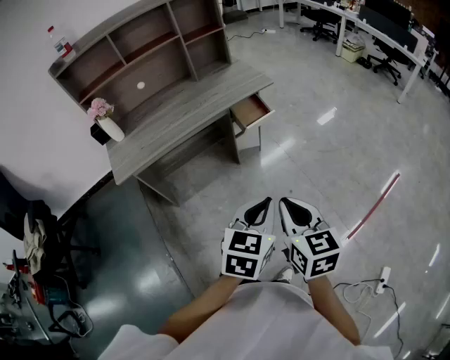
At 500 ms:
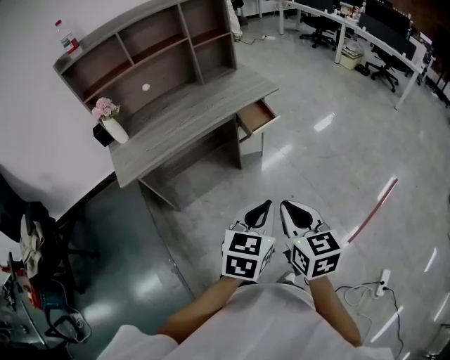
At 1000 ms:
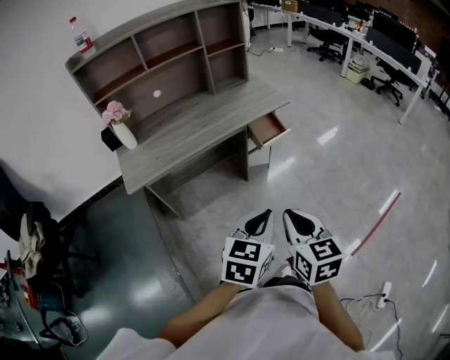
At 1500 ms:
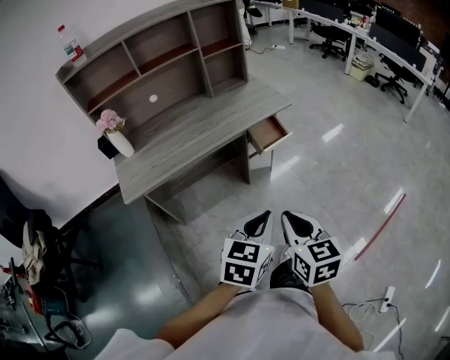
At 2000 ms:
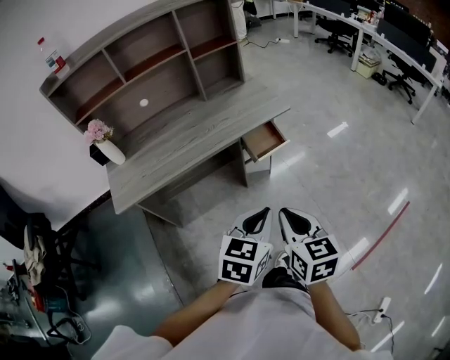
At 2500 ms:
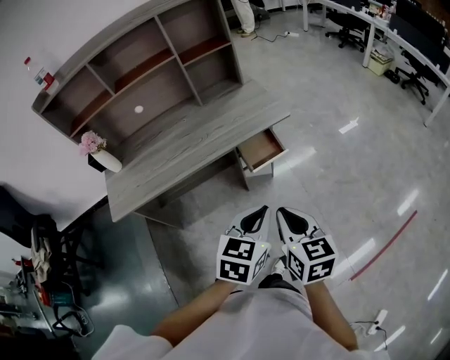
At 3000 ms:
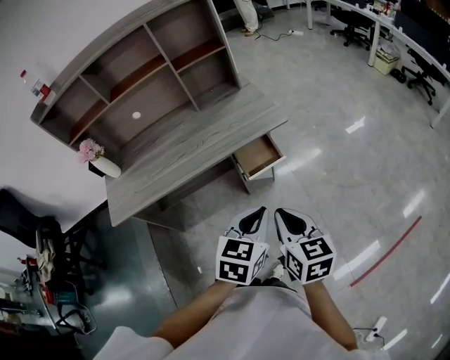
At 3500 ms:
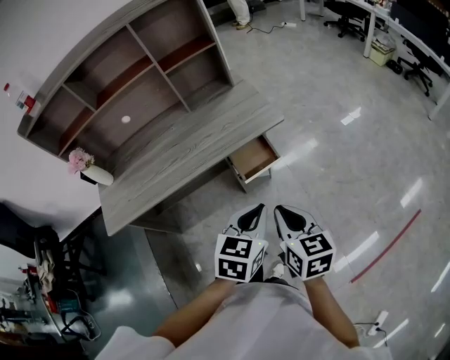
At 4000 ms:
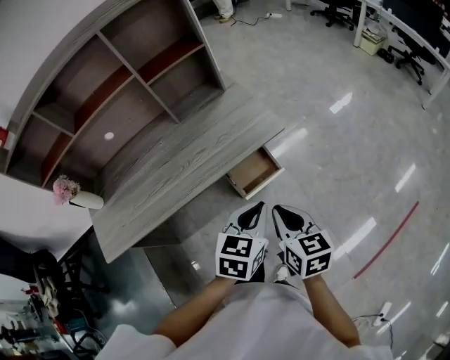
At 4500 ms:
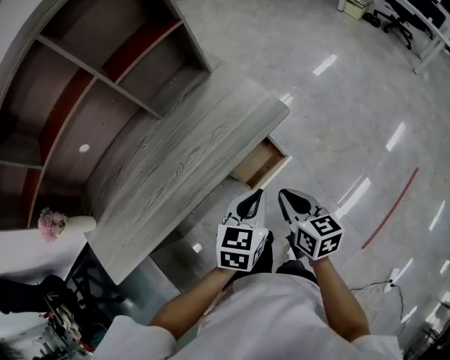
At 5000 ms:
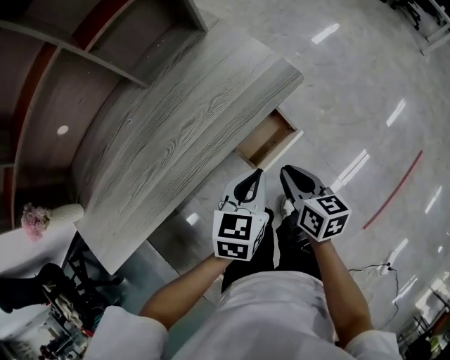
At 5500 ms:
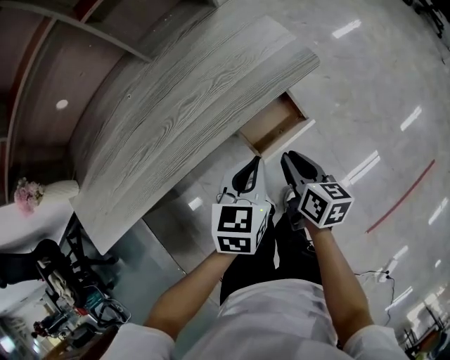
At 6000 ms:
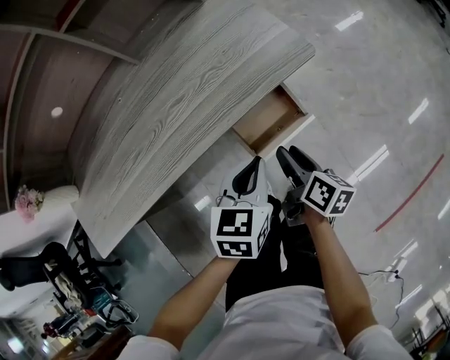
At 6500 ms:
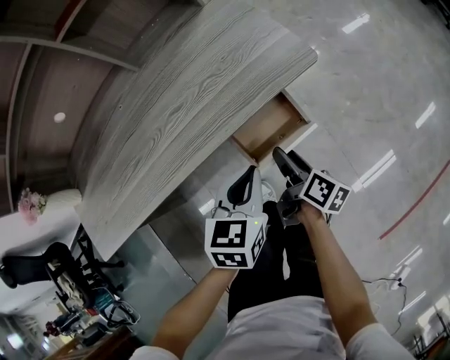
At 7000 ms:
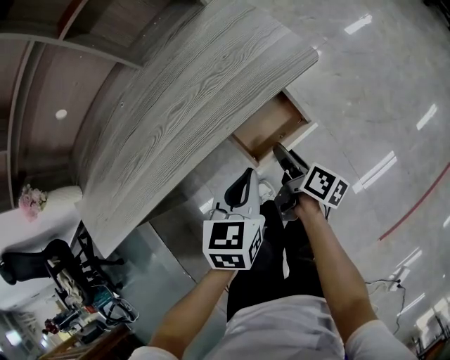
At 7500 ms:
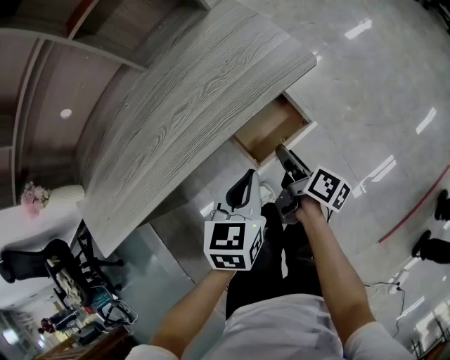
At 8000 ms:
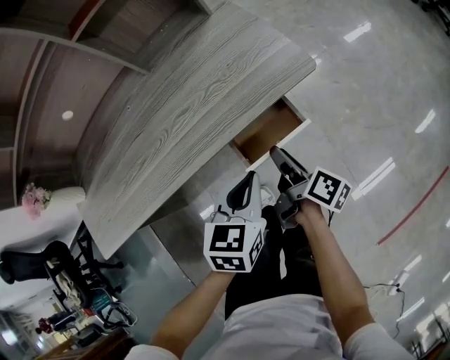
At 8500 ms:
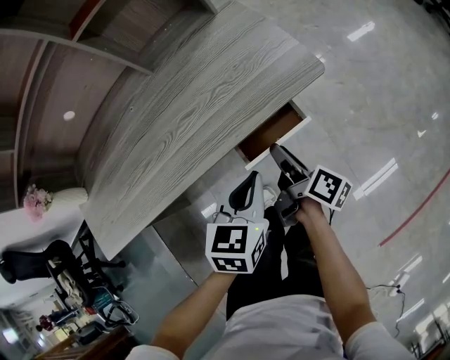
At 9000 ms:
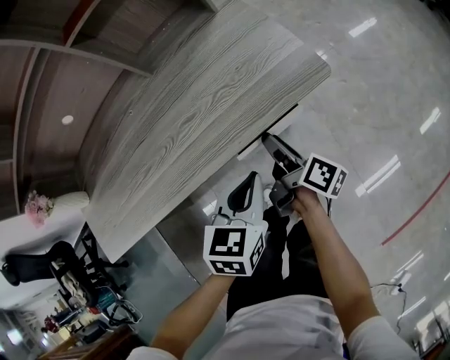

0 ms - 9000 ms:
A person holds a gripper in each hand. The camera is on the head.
0 ms - 2000 ms: Both grippers travel together forward, some 15 cm.
2000 ms - 4500 ms: The two grippers go roughly 35 cm forward.
4500 ms - 7000 ms: The left gripper goes approximately 10 cm downward. Meanwhile the right gripper heads downward, covering approximately 20 cm, rotates around the line of its fingers by approximately 50 degrees, clockwise from behind, and opens.
7000 ms - 9000 ms: The right gripper goes roughly 10 cm forward and upward.

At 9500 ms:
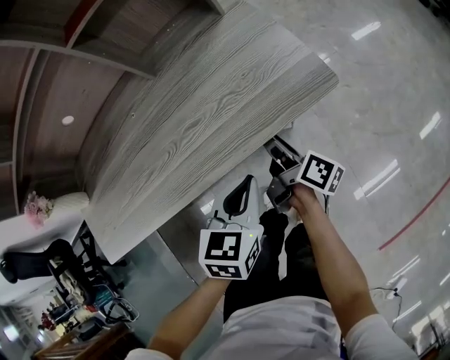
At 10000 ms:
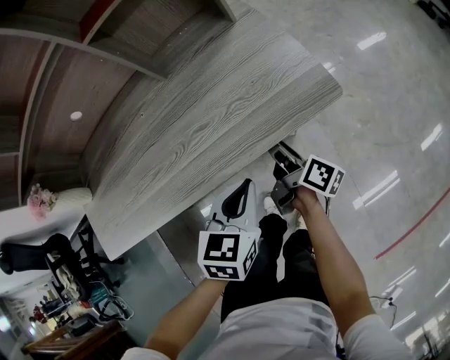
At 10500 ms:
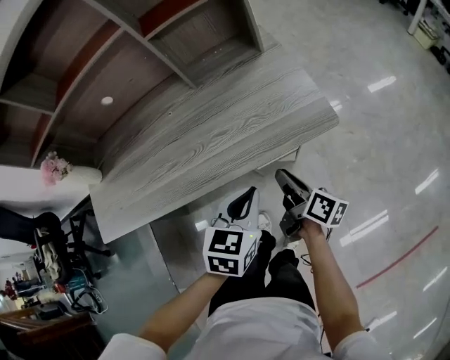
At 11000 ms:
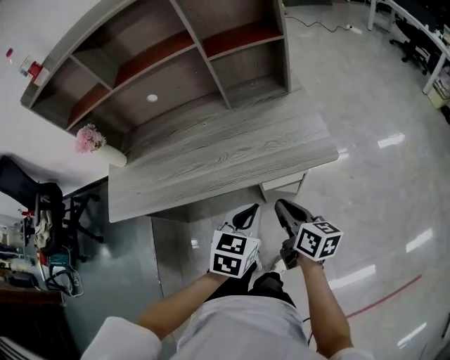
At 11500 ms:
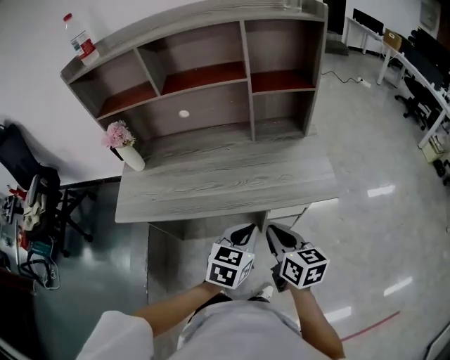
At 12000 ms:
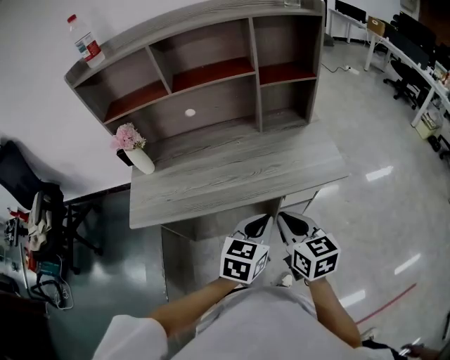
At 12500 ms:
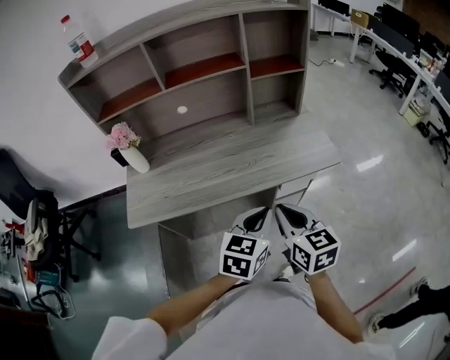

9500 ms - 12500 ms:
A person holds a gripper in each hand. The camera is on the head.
9500 ms - 11000 ms: The left gripper goes roughly 15 cm upward and backward. Meanwhile the right gripper goes some 20 cm upward and backward, swivels about 40 degrees, and closes up.
11000 ms - 12500 ms: Both grippers move to the left, upward and backward, approximately 20 cm. The right gripper swivels approximately 30 degrees.

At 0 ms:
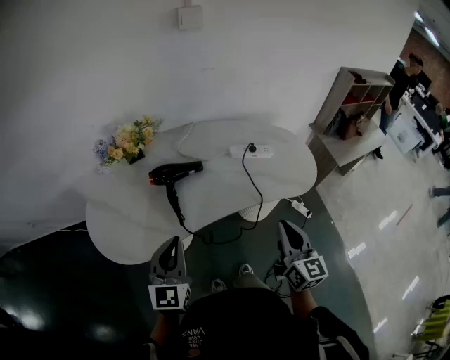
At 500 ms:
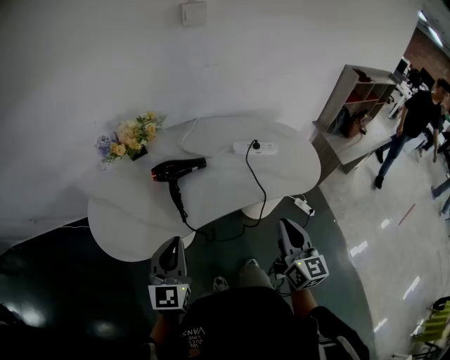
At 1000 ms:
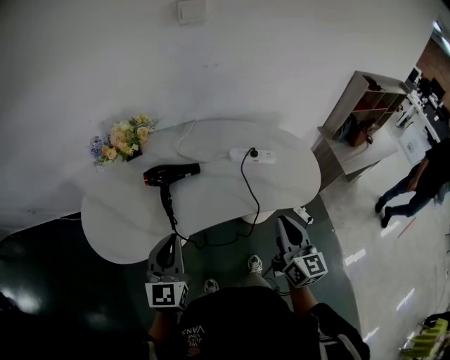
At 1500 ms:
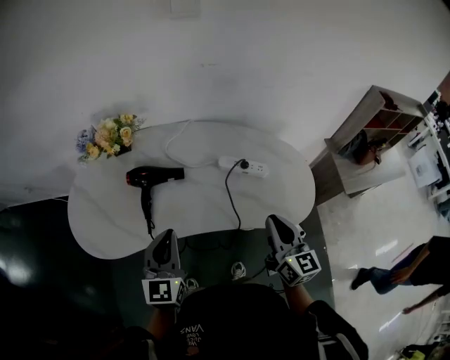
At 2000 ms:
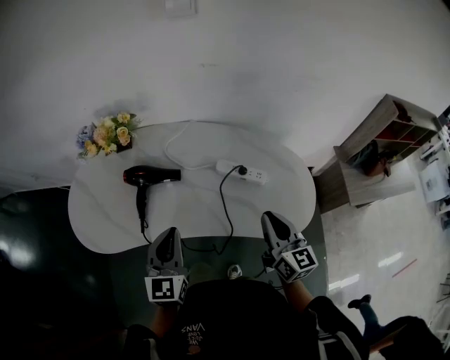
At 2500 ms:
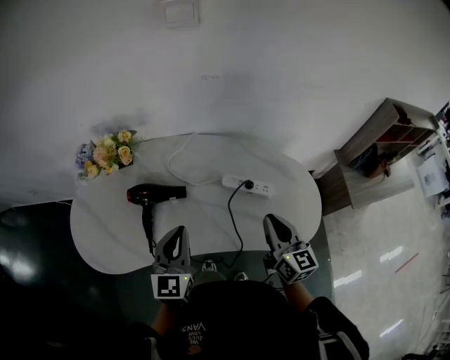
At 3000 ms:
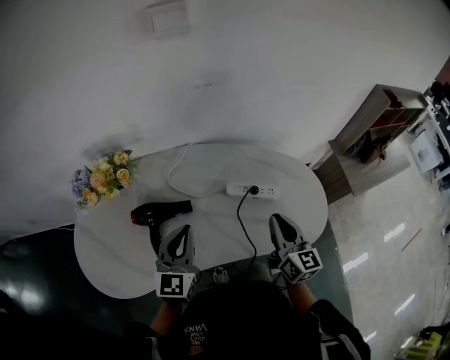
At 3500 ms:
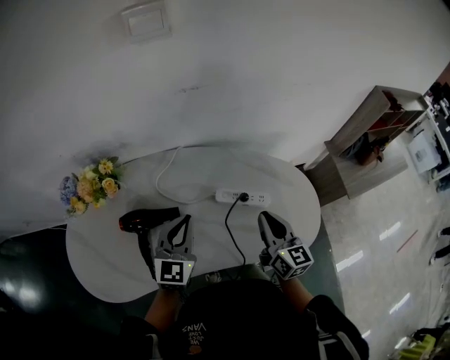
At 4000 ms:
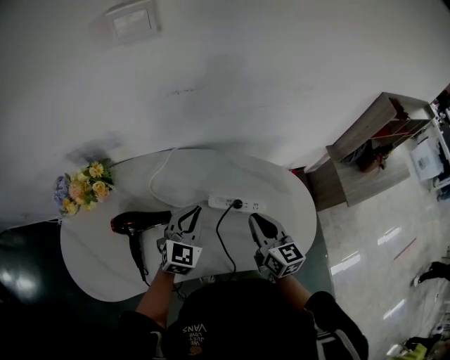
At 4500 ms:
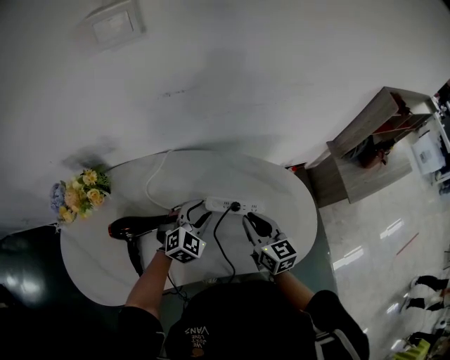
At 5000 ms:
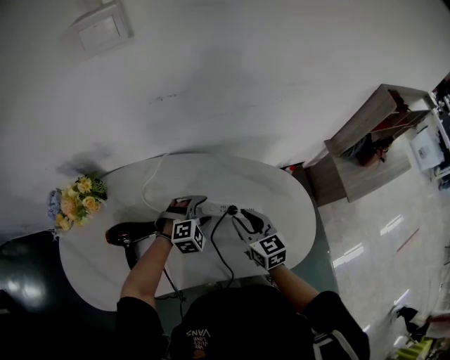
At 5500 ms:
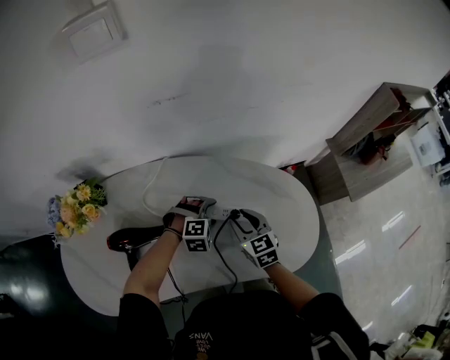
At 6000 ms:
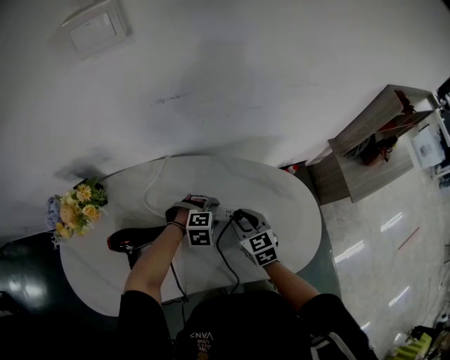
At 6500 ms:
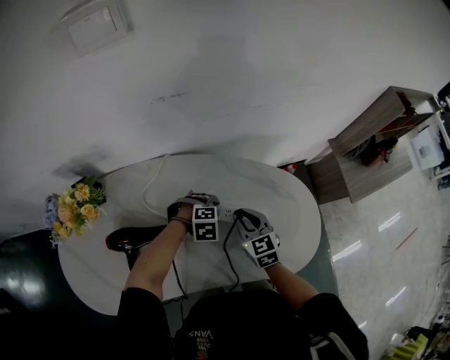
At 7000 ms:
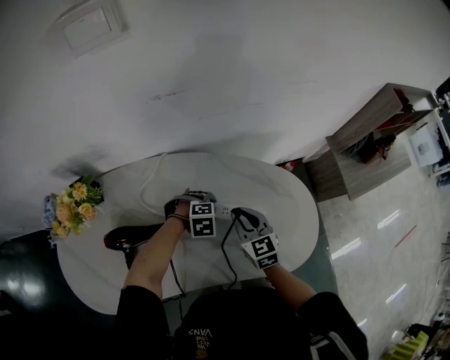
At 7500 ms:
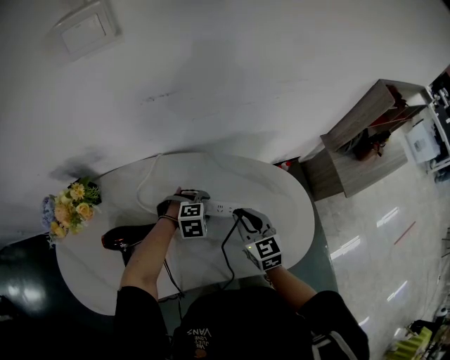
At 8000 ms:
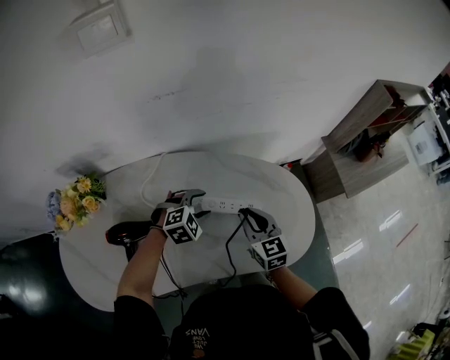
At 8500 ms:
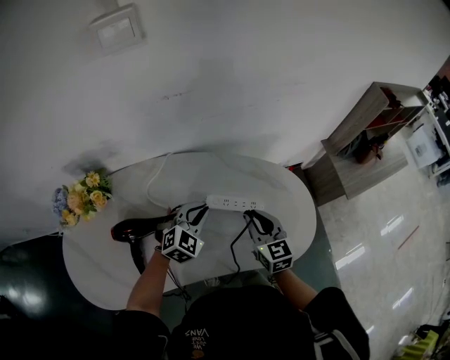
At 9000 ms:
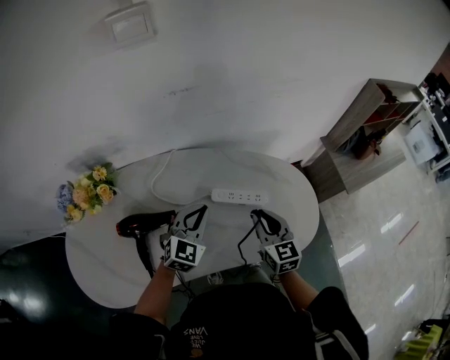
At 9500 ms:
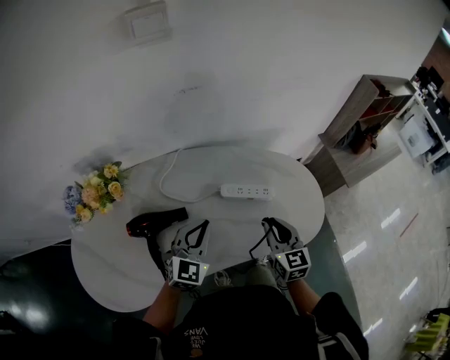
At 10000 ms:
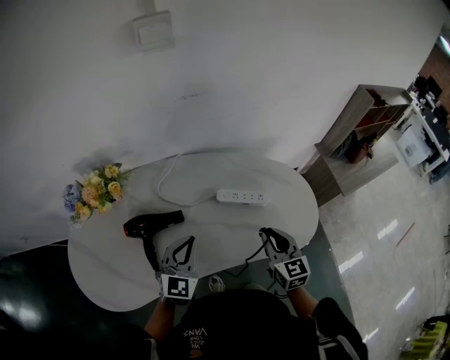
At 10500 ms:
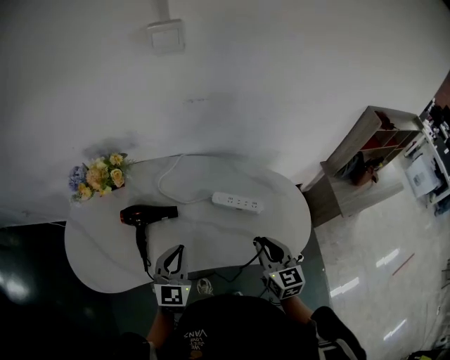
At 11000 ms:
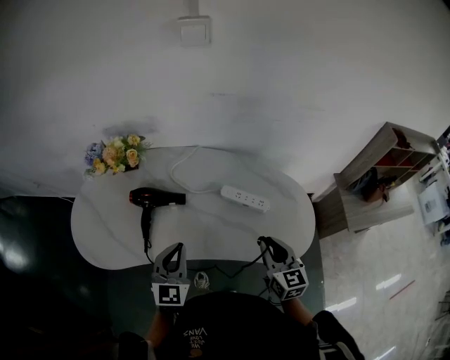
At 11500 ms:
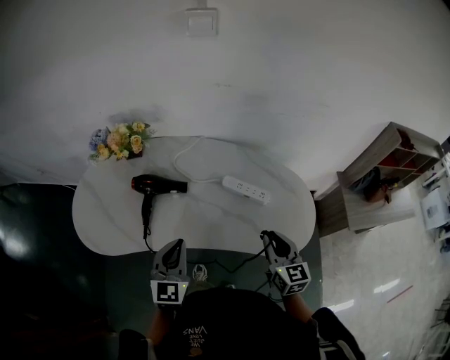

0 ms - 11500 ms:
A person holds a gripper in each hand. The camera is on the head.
0 ms - 2000 ms: The right gripper heads forward and to the right, covering roughly 25 cm, and changes its angle by about 20 degrees; the left gripper goes some 25 cm to the right and forward.
2000 ms - 4000 ms: The left gripper moves forward, some 25 cm, and swivels about 40 degrees; the right gripper shifts roughly 15 cm forward.
4000 ms - 6000 ms: The left gripper heads downward, covering roughly 15 cm, tilts its fingers about 50 degrees downward, and opens up; the right gripper shifts some 10 cm downward and forward, turns by roughly 30 degrees, and opens up.
6000 ms - 7500 ms: The right gripper shifts by roughly 5 cm.
7500 ms - 9500 ms: The right gripper is displaced backward by about 15 cm. Meanwhile the left gripper shifts approximately 25 cm upward, backward and to the left, angles its fingers upward, by about 50 degrees, and closes its fingers.
9500 ms - 11500 ms: The left gripper moves about 15 cm, and changes its angle by about 40 degrees. Meanwhile the right gripper changes place by about 10 cm.

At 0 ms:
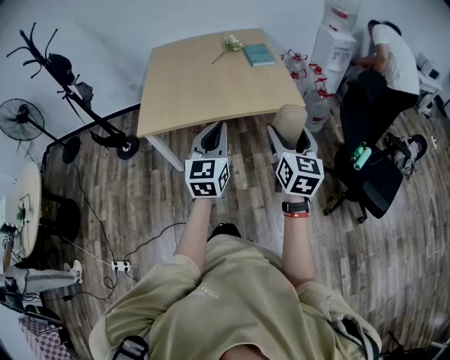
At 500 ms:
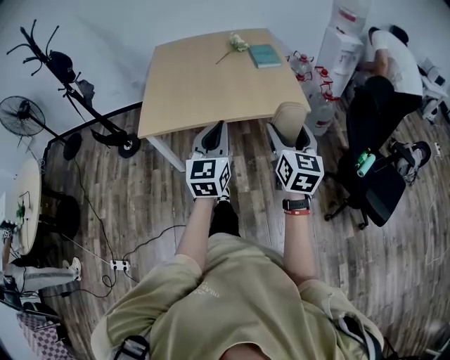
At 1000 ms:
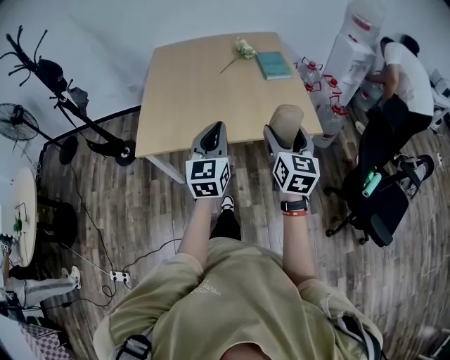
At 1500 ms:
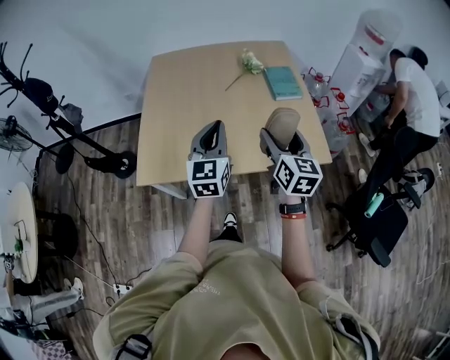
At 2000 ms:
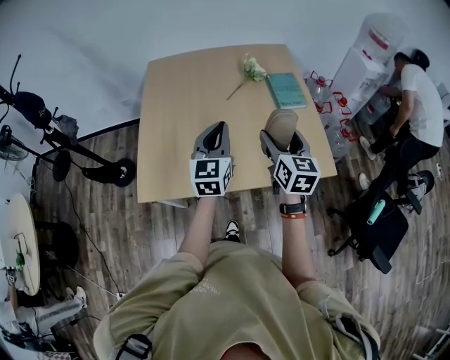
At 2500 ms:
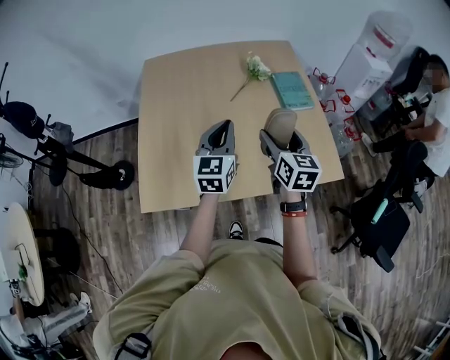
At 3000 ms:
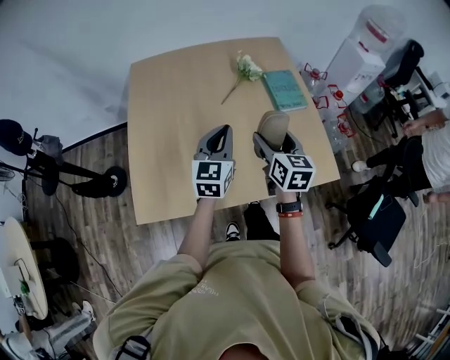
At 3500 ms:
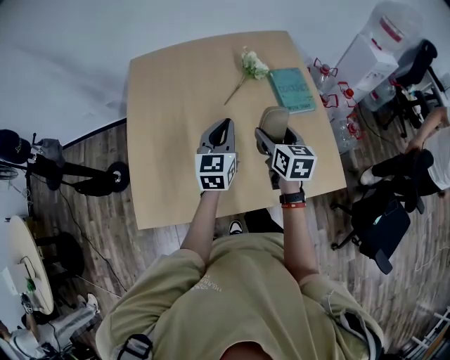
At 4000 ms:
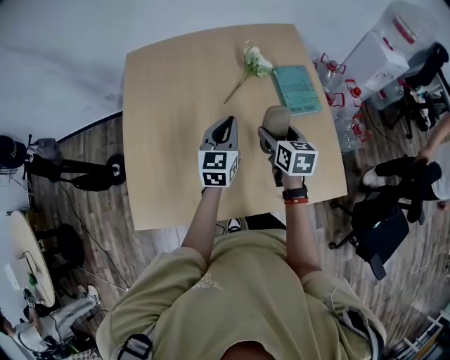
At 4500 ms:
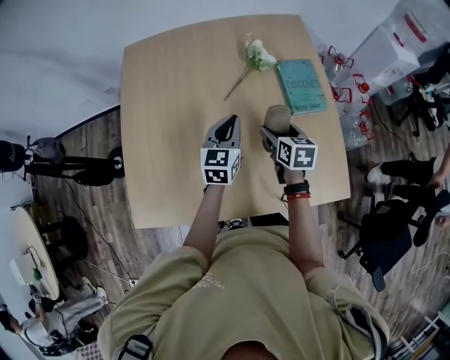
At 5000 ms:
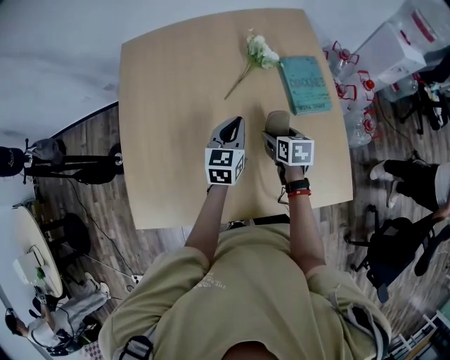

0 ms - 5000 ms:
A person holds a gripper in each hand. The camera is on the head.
0 ms - 2500 ms: The two grippers travel together, forward, roughly 60 cm.
2500 ms - 5000 ms: Both grippers travel together forward and downward, roughly 35 cm. The right gripper tips its fingers downward by roughly 30 degrees.
